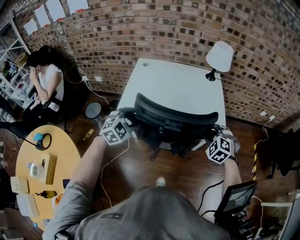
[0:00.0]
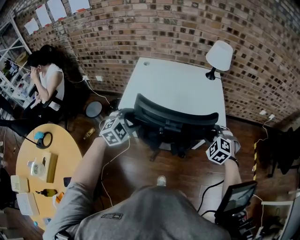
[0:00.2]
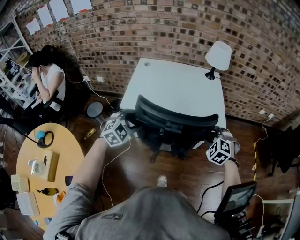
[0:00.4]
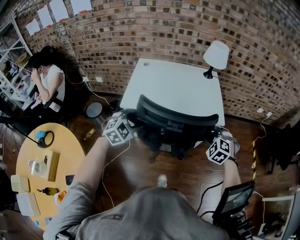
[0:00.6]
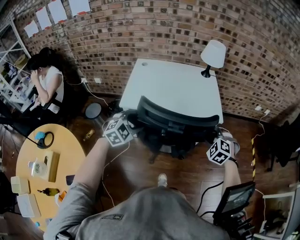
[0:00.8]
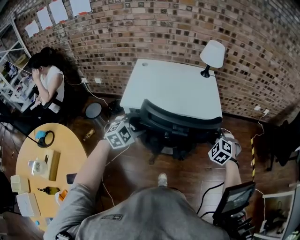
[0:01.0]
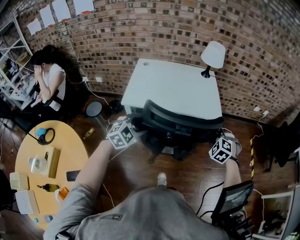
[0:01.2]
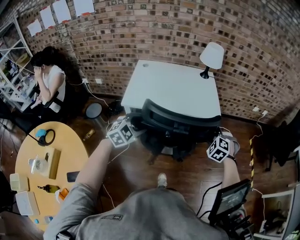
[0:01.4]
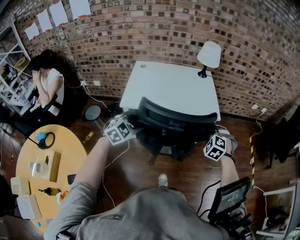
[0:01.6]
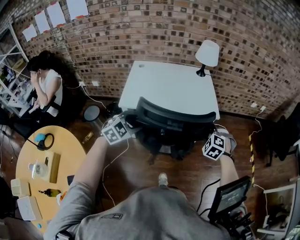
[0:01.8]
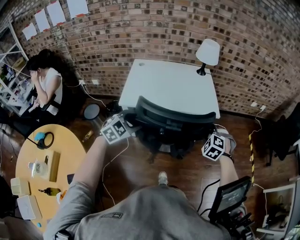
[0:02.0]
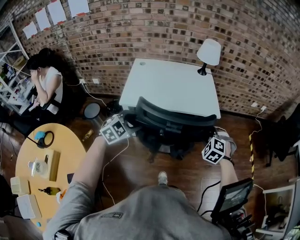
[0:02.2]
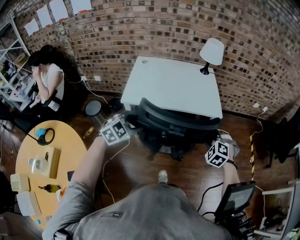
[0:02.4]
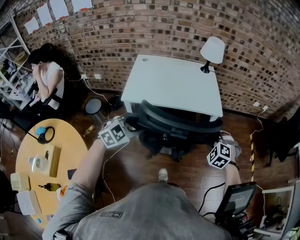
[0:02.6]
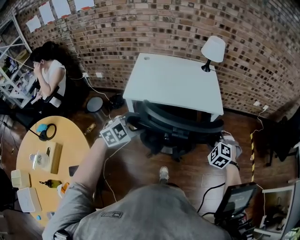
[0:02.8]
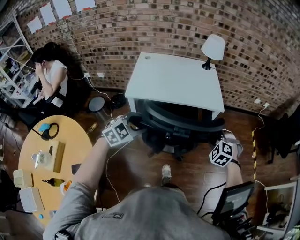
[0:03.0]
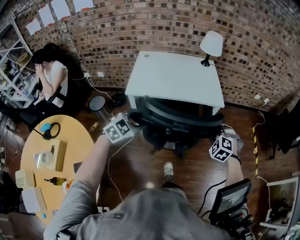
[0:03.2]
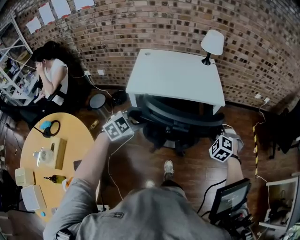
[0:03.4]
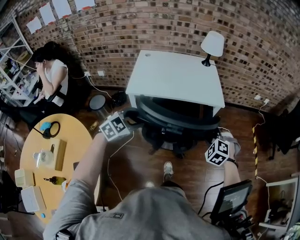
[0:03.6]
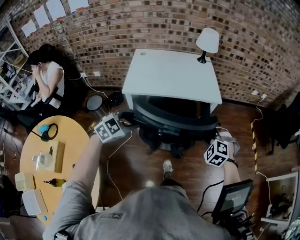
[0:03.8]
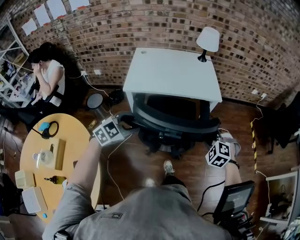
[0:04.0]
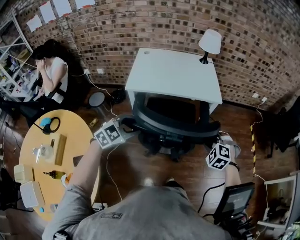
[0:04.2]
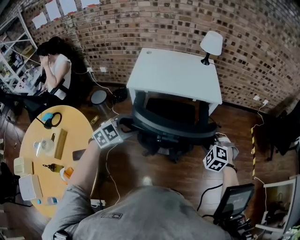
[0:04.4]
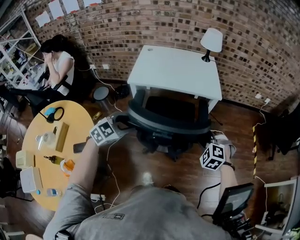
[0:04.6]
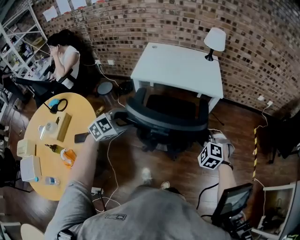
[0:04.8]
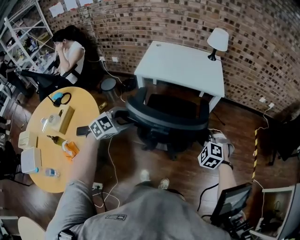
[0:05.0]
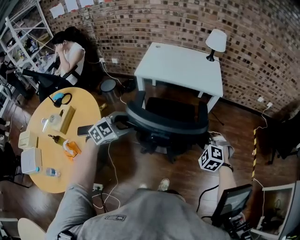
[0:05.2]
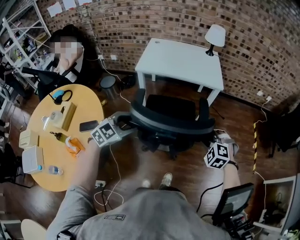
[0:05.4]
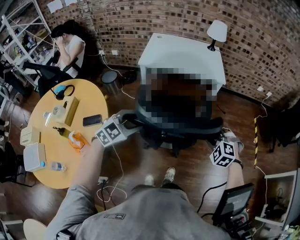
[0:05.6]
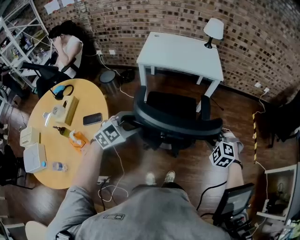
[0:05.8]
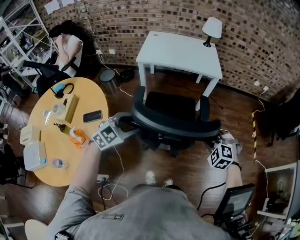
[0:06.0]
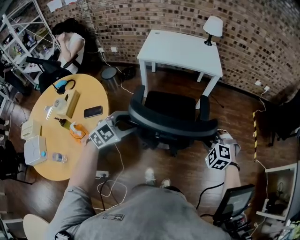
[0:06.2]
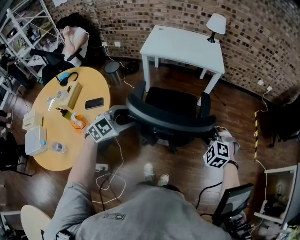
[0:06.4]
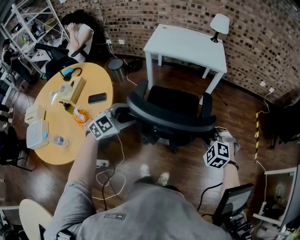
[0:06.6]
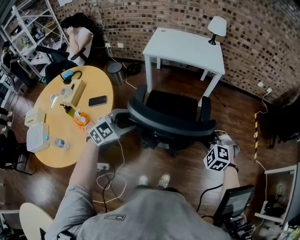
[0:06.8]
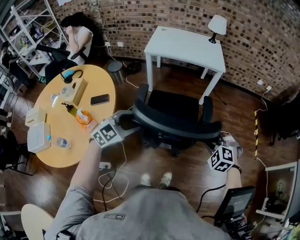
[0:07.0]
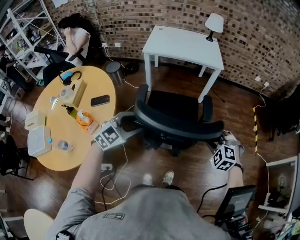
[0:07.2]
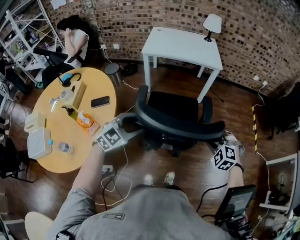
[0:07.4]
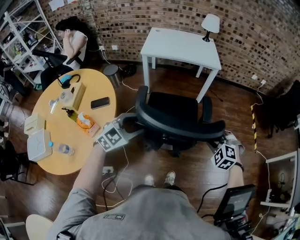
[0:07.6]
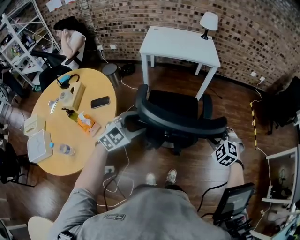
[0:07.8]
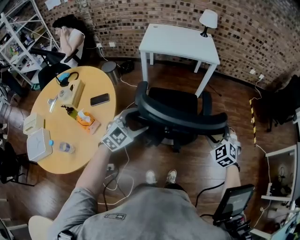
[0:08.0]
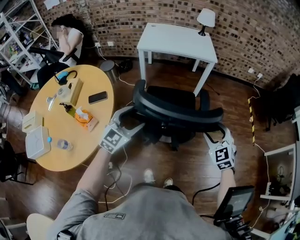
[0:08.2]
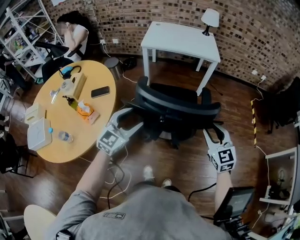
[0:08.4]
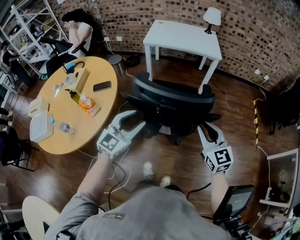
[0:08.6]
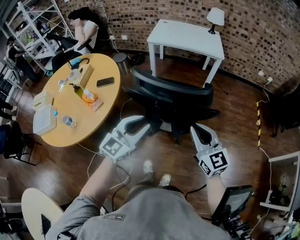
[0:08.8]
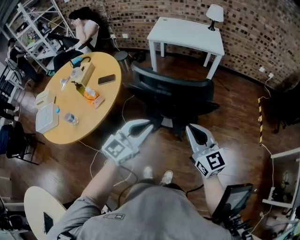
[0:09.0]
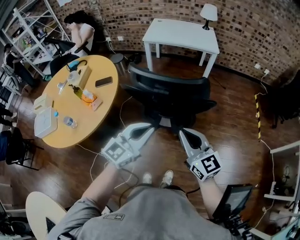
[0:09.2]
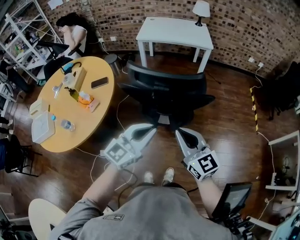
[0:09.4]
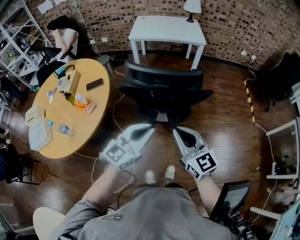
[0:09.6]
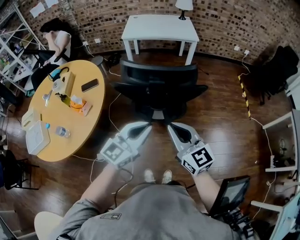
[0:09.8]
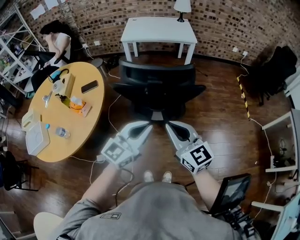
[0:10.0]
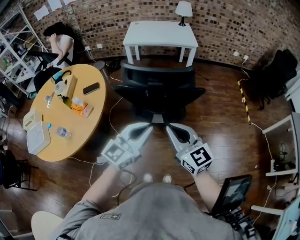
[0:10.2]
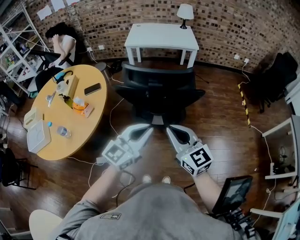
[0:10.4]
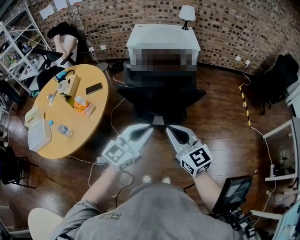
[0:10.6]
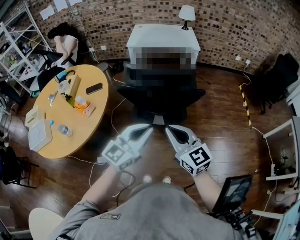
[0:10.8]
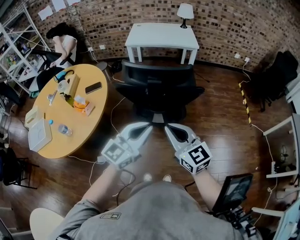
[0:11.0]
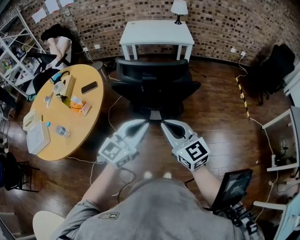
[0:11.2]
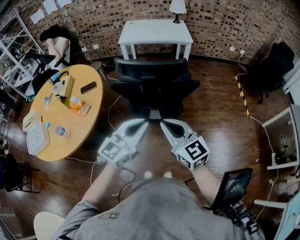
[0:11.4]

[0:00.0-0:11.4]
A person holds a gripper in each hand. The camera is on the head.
0:00.0 to 0:01.4: Both grippers move backward, roughly 10 cm.
0:01.4 to 0:02.8: Both grippers move backward, some 5 cm.
0:02.8 to 0:04.2: The grippers both shift backward by about 10 cm.
0:04.2 to 0:05.6: The two grippers go about 20 cm backward.
0:05.6 to 0:07.2: Both grippers travel together backward, some 15 cm.
0:07.2 to 0:08.6: The left gripper heads backward and upward, covering some 10 cm, and rotates roughly 30 degrees; the right gripper is displaced upward and backward by some 10 cm, angles its fingers upward, by approximately 40 degrees, and opens, then closes again.
0:08.6 to 0:10.0: The right gripper goes roughly 15 cm backward and to the left. Meanwhile the left gripper shifts roughly 15 cm backward and to the right, rotates approximately 20 degrees, and closes up.
0:10.0 to 0:11.4: The grippers move only a little.

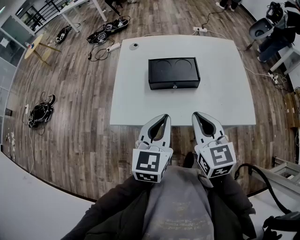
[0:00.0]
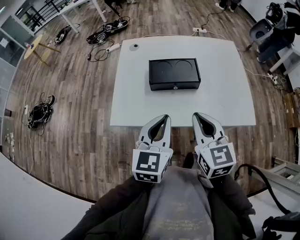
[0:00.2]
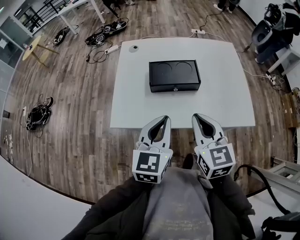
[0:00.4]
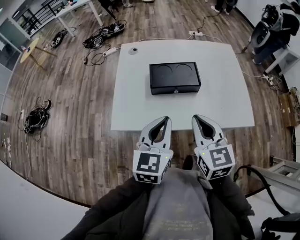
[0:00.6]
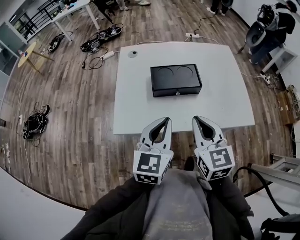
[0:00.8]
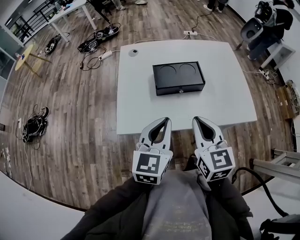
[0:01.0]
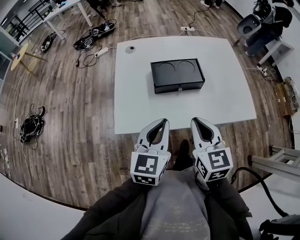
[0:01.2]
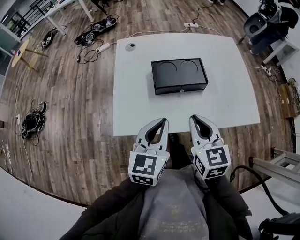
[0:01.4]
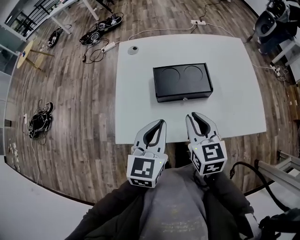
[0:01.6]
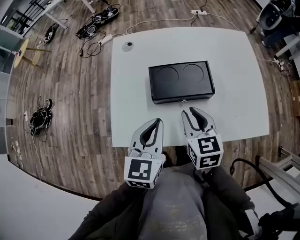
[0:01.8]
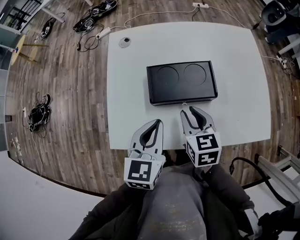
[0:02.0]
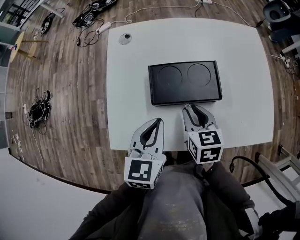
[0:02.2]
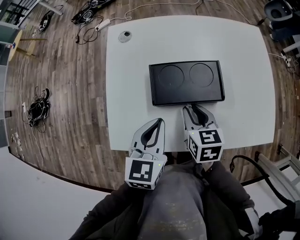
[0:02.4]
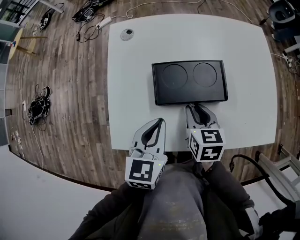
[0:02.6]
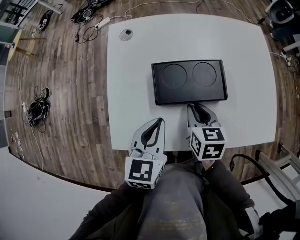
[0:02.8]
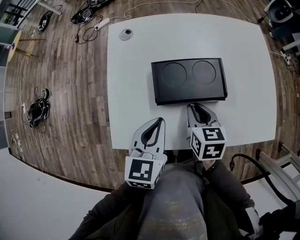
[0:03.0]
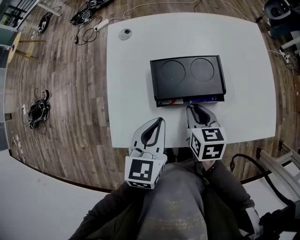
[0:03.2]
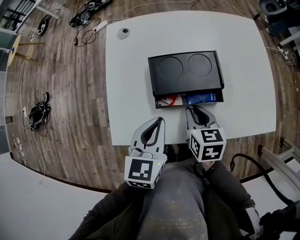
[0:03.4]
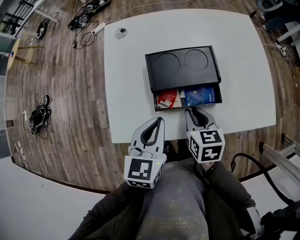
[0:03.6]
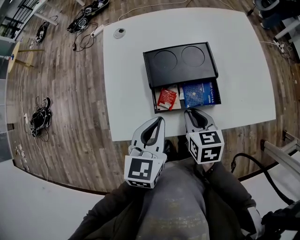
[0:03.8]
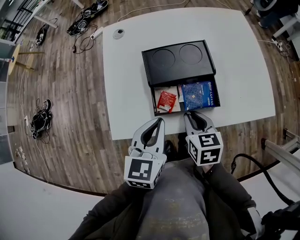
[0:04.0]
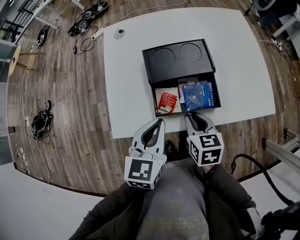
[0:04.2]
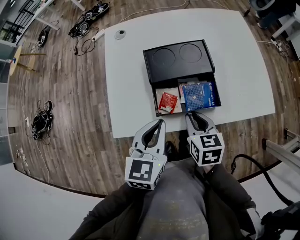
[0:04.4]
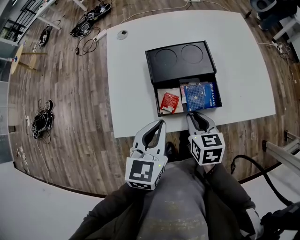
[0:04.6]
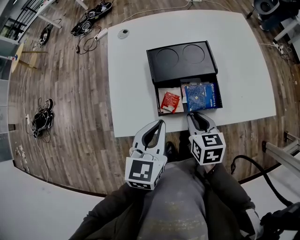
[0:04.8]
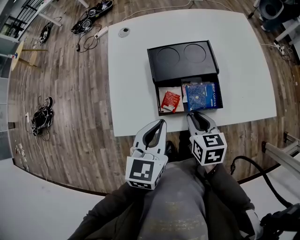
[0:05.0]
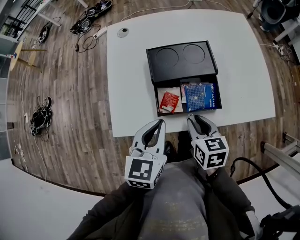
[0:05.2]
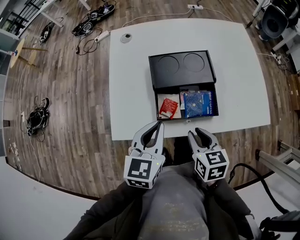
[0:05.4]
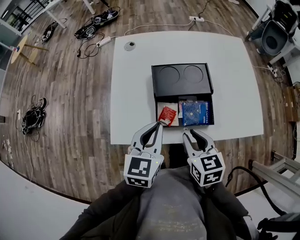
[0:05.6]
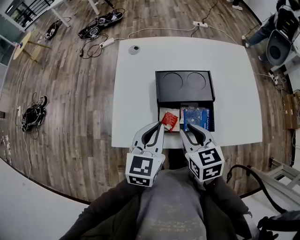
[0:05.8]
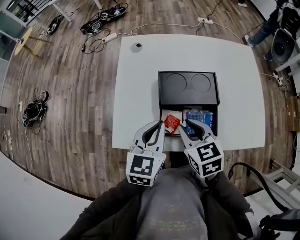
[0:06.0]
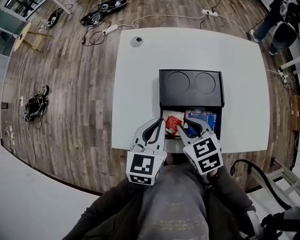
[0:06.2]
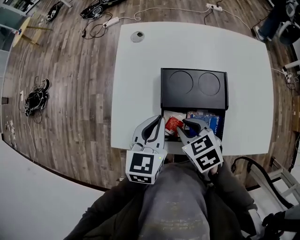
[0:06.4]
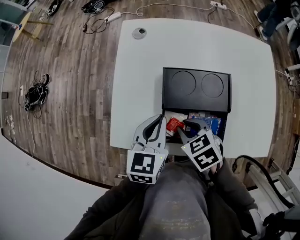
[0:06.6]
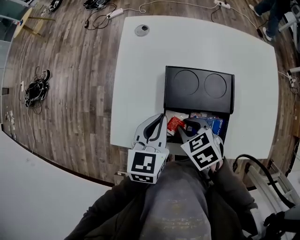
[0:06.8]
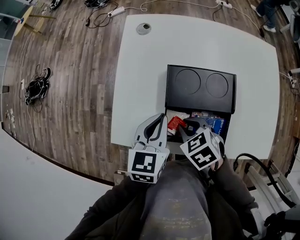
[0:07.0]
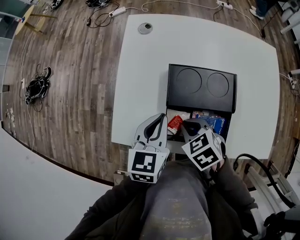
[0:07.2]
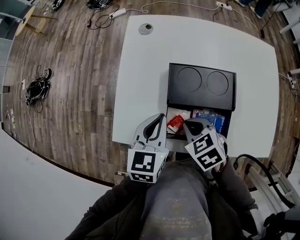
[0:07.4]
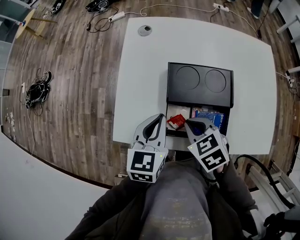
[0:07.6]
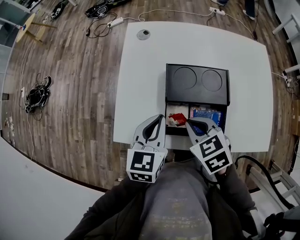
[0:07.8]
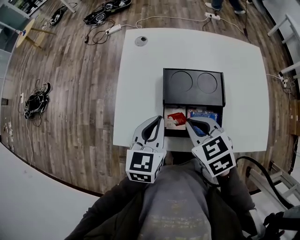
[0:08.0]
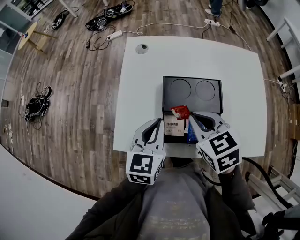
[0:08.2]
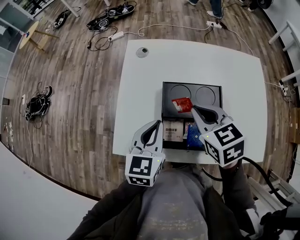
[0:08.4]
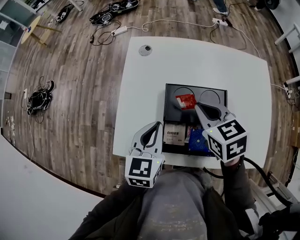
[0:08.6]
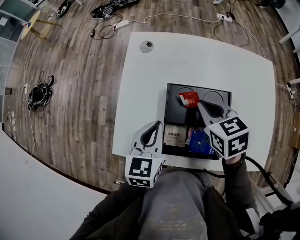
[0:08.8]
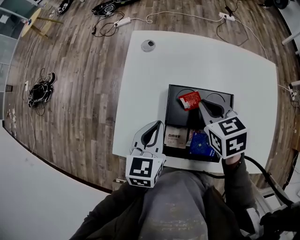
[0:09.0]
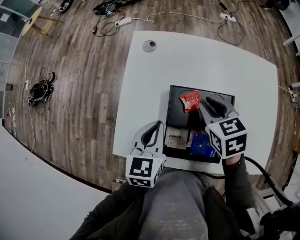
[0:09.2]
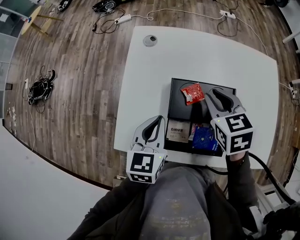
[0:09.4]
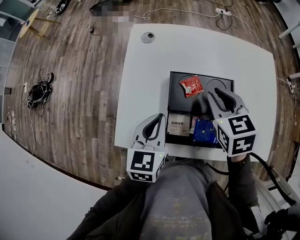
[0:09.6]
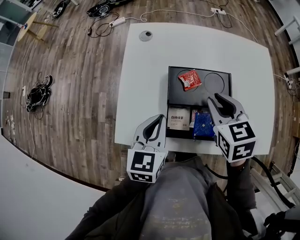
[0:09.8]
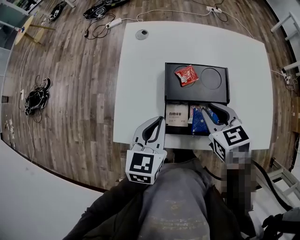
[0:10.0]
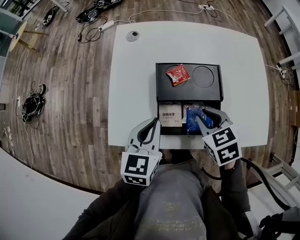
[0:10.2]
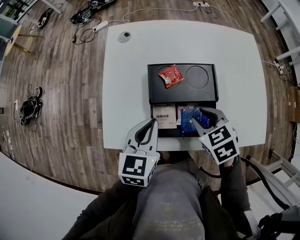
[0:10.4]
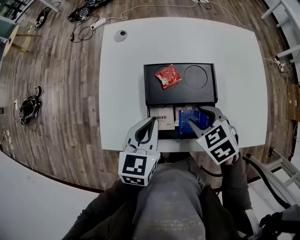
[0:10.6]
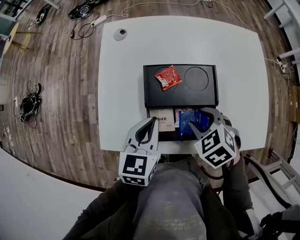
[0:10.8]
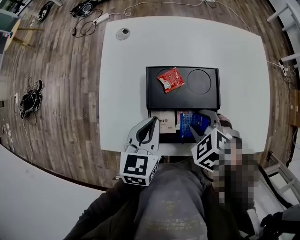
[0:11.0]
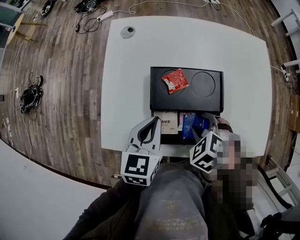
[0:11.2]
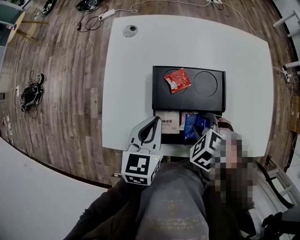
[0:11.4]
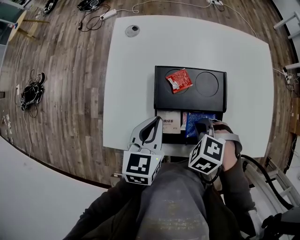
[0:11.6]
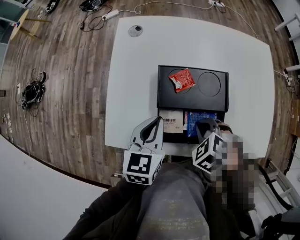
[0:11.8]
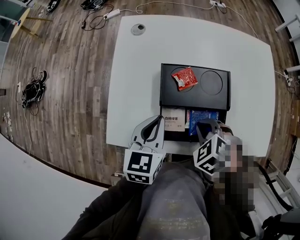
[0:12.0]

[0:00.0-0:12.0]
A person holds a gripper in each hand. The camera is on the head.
0:00.0 to 0:01.6: The right gripper goes about 10 cm forward, downward and to the left. The left gripper heads forward and to the left, covering approximately 10 cm.
0:01.6 to 0:03.0: The right gripper goes approximately 15 cm downward and forward, and turns by about 20 degrees. Meanwhile the left gripper heads forward and downward, covering approximately 10 cm.
0:03.0 to 0:04.4: Both grippers travel together backward, roughly 10 cm.
0:04.4 to 0:06.0: The left gripper heads forward, covering about 5 cm, while the right gripper travels upward by some 5 cm, and swivels some 20 degrees.
0:06.0 to 0:07.6: The right gripper is displaced downward by about 5 cm, rotates approximately 20 degrees, and closes.
0:07.6 to 0:09.0: The right gripper moves forward and to the right, roughly 15 cm. The left gripper is displaced forward by roughly 5 cm.
0:09.0 to 0:10.4: The right gripper heads backward, covering approximately 15 cm, and opens. The left gripper goes about 5 cm backward.
0:10.4 to 0:12.0: The right gripper turns by about 30 degrees, and closes its fingers.
